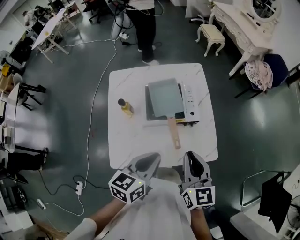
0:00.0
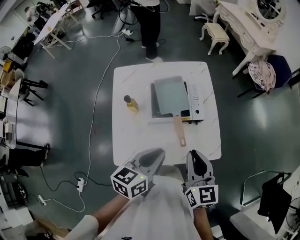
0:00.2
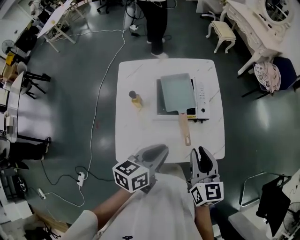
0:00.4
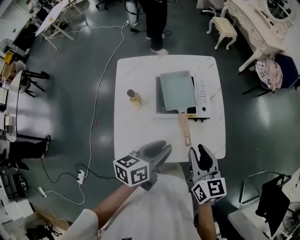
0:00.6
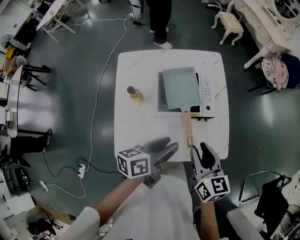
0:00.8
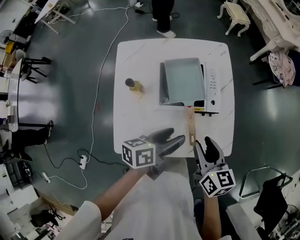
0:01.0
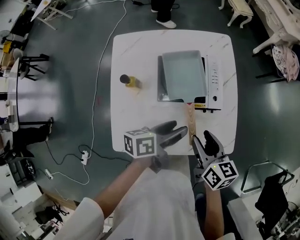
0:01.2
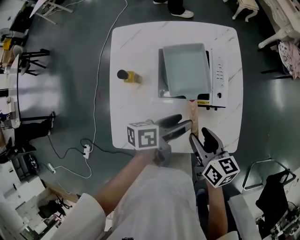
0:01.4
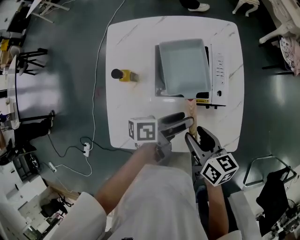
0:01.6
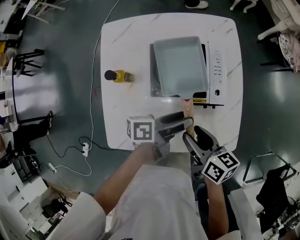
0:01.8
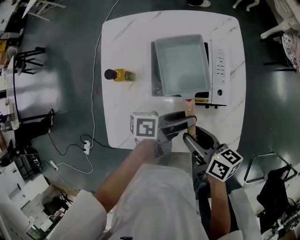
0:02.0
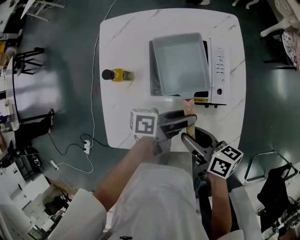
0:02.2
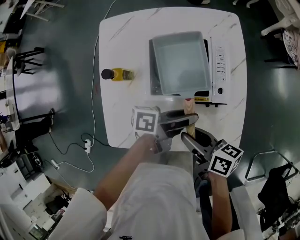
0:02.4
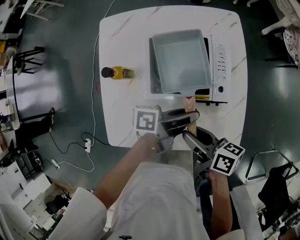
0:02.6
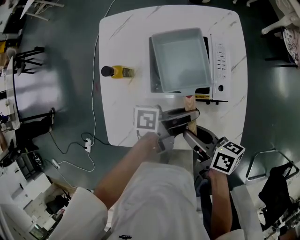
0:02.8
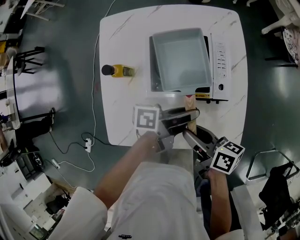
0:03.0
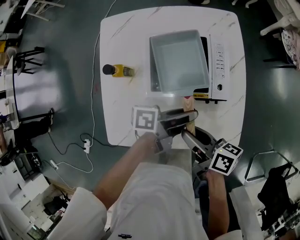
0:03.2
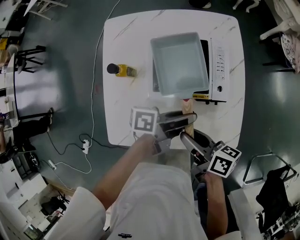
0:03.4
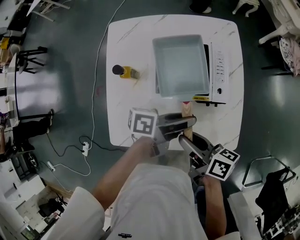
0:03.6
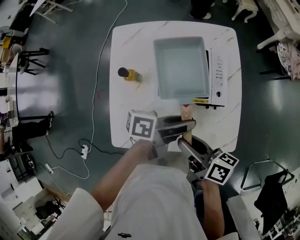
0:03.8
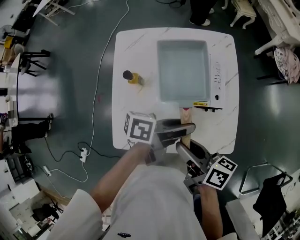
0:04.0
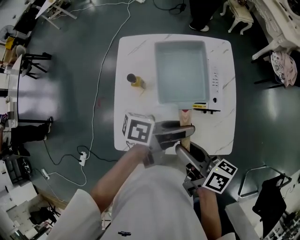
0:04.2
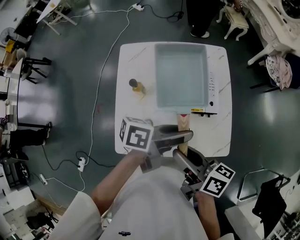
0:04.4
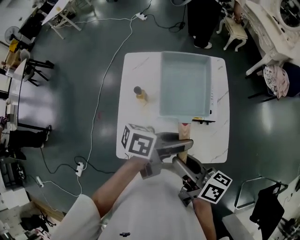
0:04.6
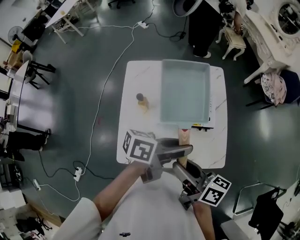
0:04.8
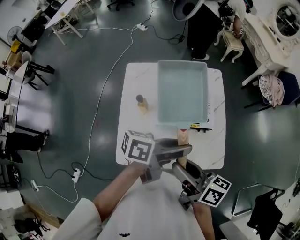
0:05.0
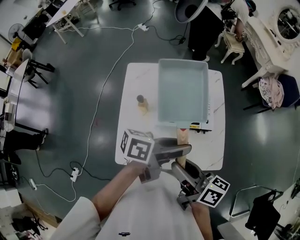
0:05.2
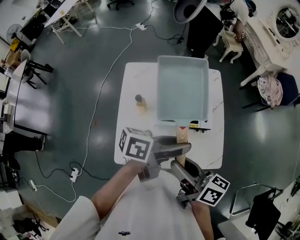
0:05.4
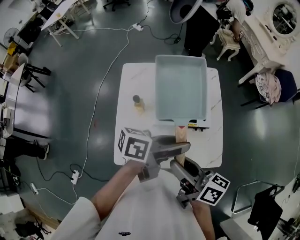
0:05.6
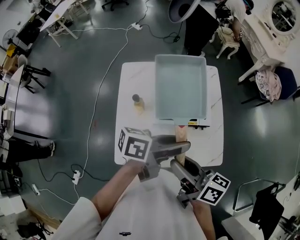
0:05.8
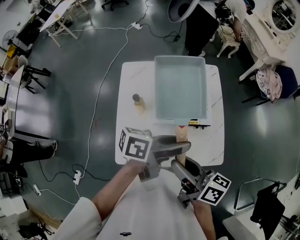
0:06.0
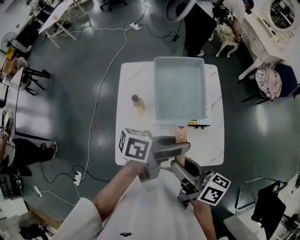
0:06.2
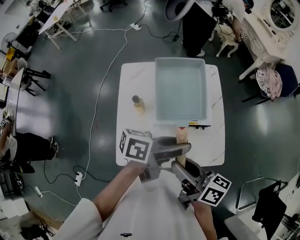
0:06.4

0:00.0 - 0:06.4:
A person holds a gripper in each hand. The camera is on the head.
0:00.0 - 0:01.6: The left gripper moves downward and forward, some 20 cm, twists some 50 degrees counterclockwise, seen from behind, and opens; the right gripper shifts about 20 cm downward, swivels approximately 40 degrees, and opens up.
0:01.6 - 0:03.2: The right gripper changes its angle by roughly 30 degrees; the left gripper closes up.
0:03.2 - 0:04.8: The two grippers go roughly 20 cm upward. The left gripper turns by roughly 20 degrees.
0:04.8 - 0:06.4: The grippers move only a little.

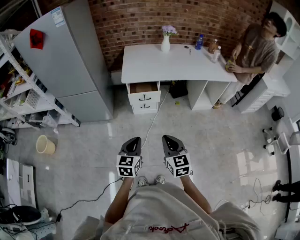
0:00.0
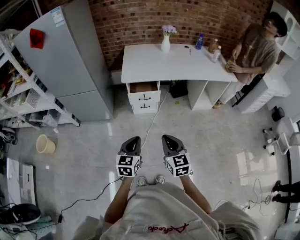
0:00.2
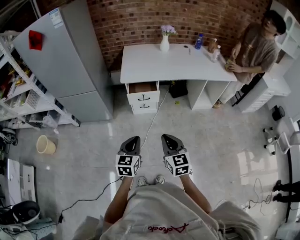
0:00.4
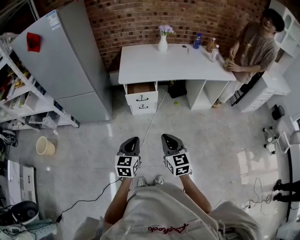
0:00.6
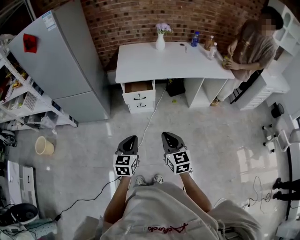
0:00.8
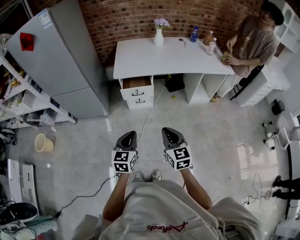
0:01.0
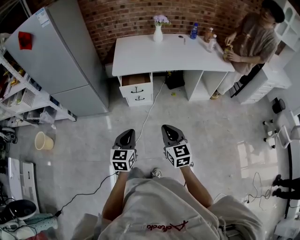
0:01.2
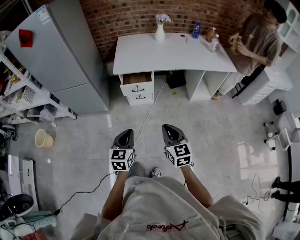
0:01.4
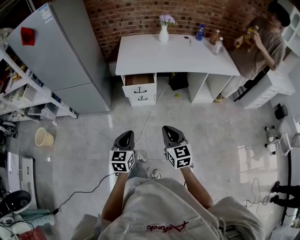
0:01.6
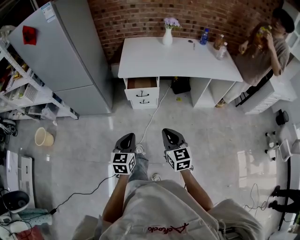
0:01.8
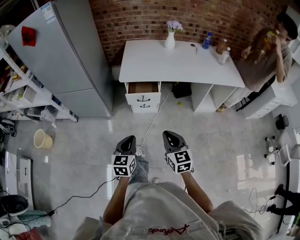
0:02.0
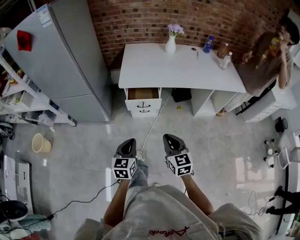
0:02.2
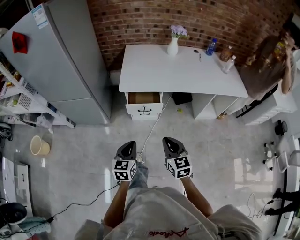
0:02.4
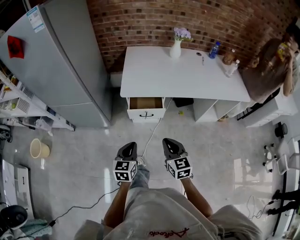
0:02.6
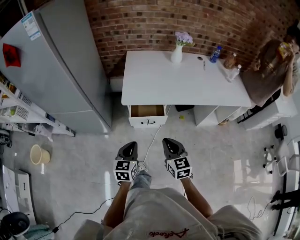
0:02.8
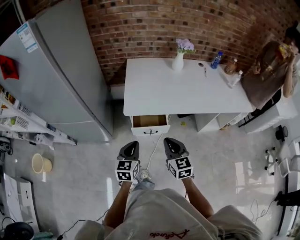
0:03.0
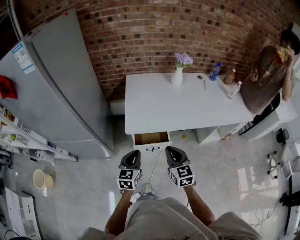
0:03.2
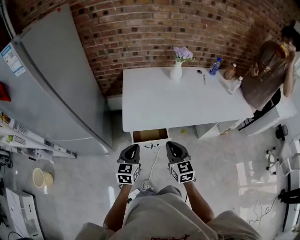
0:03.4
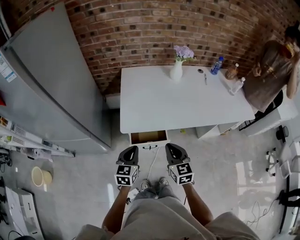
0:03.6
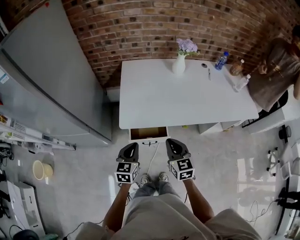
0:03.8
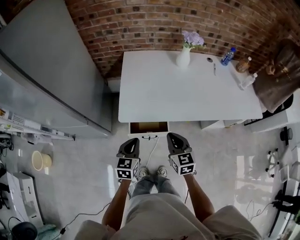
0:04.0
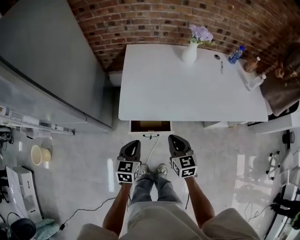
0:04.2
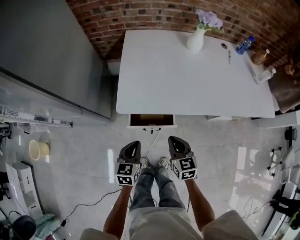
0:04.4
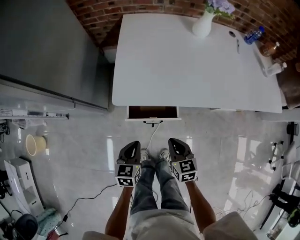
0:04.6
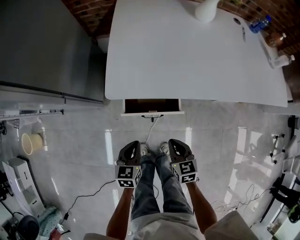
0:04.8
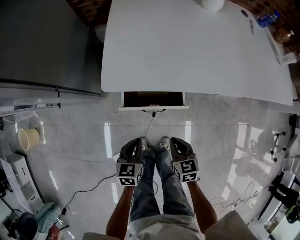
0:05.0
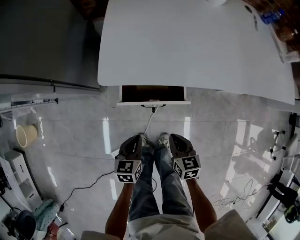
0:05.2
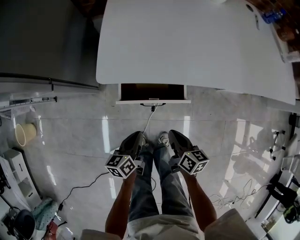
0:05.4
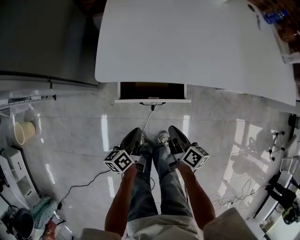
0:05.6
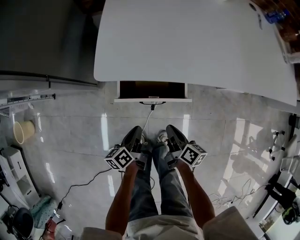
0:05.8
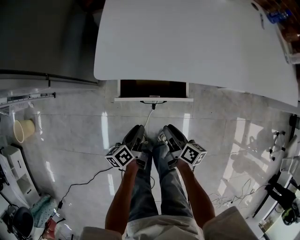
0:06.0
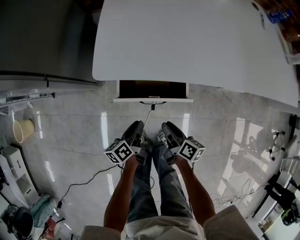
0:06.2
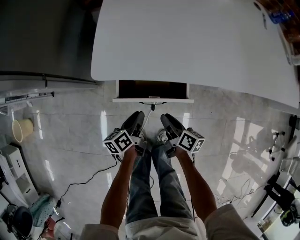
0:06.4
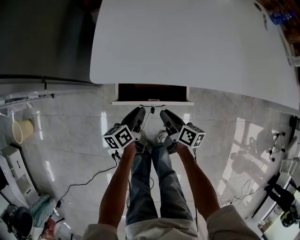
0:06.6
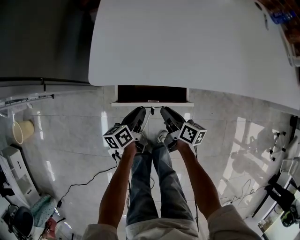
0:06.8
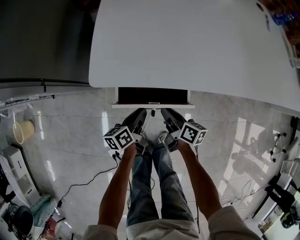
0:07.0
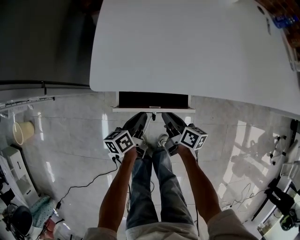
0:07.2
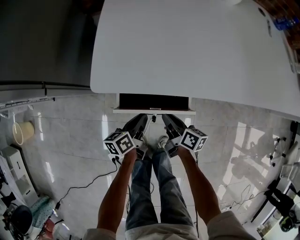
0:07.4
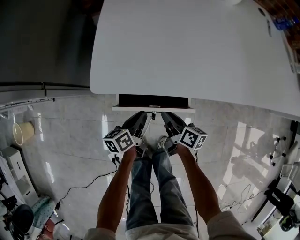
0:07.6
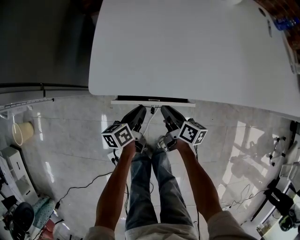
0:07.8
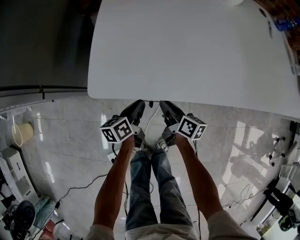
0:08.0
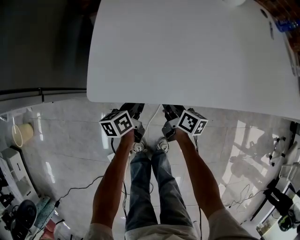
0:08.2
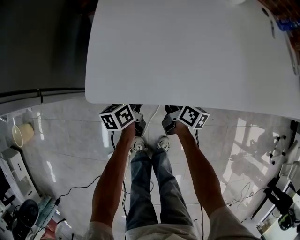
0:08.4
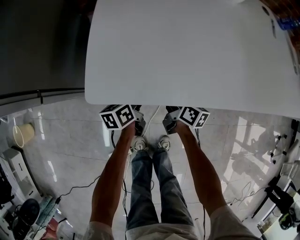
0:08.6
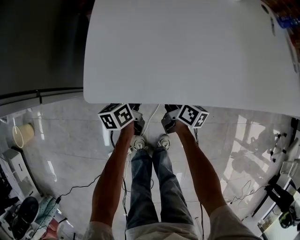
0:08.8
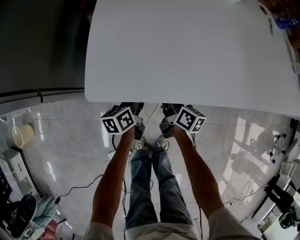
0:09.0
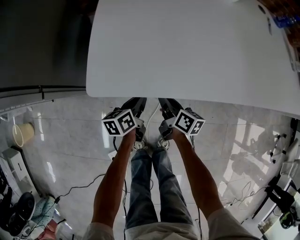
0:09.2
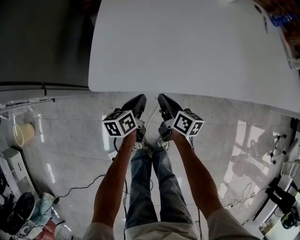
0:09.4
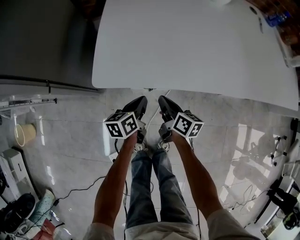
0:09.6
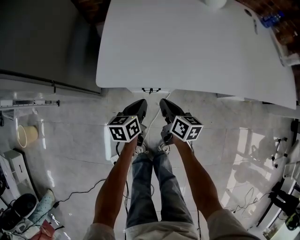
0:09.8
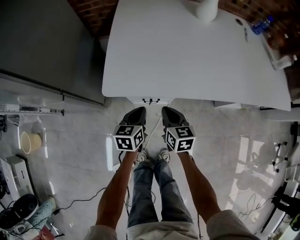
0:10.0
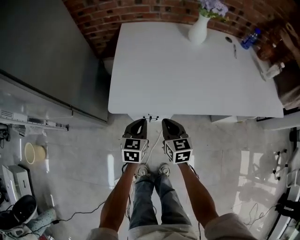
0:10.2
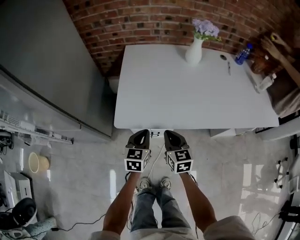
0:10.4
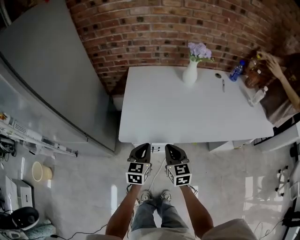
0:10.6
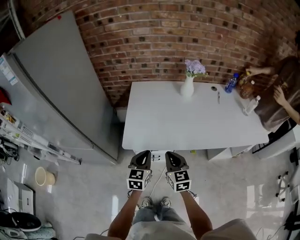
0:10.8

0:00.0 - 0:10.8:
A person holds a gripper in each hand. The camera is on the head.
0:00.0 - 0:01.6: The right gripper travels to the right by about 5 cm.
0:01.6 - 0:03.0: The two grippers go roughly 30 cm forward.
0:03.0 - 0:04.6: Both grippers move downward and forward, roughly 20 cm. The right gripper turns by some 20 degrees.
0:04.6 - 0:06.2: Both grippers move downward, roughly 20 cm. The left gripper rotates around the line of its fingers by some 50 degrees, counterclockwise from behind, and opens its fingers, while the right gripper twists roughly 50 degrees clockwise, seen from behind, and opens up.
0:06.2 - 0:07.8: Both grippers move forward, approximately 10 cm. The right gripper closes.
0:09.2 - 0:10.8: Both grippers move upward, roughly 35 cm. The right gripper rolls counterclockwise, seen from behind, by about 50 degrees; the left gripper rolls clockwise, seen from behind, by about 50 degrees.

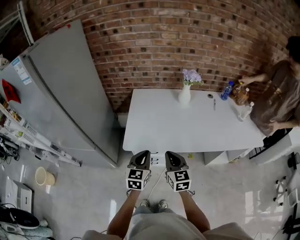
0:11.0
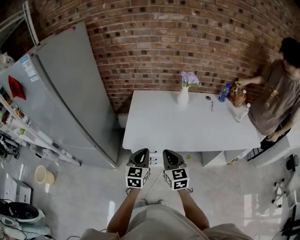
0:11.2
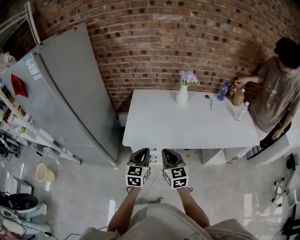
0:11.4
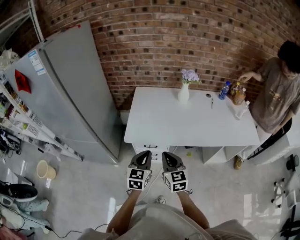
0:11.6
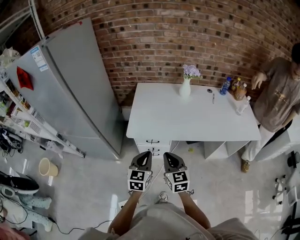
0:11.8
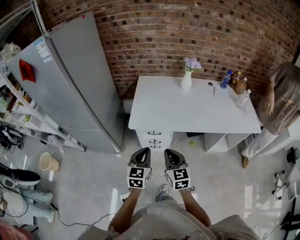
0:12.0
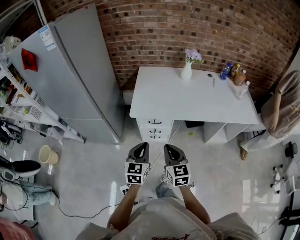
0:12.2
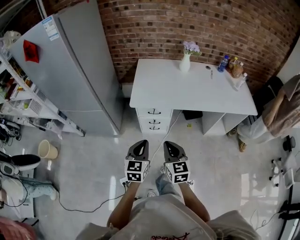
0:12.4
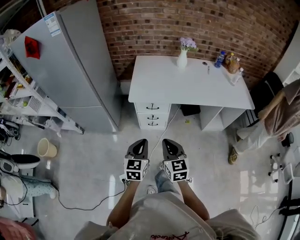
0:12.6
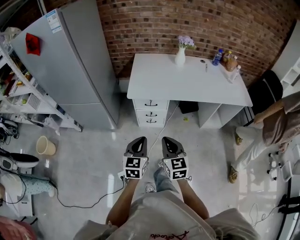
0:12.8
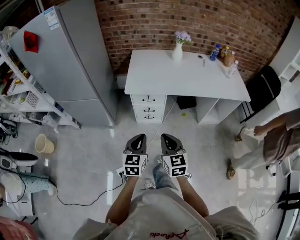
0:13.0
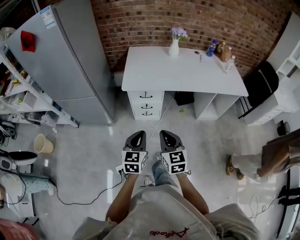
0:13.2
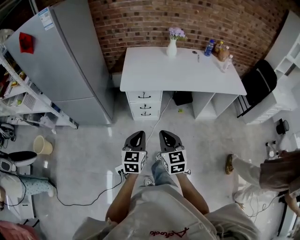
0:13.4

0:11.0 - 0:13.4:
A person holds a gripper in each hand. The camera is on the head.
0:11.0 - 0:12.2: Both grippers travel together backward, approximately 20 cm.
0:12.2 - 0:13.4: The grippers both shift backward by about 15 cm.

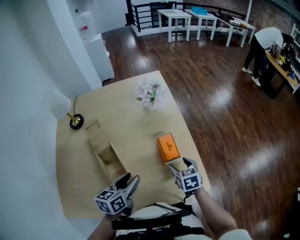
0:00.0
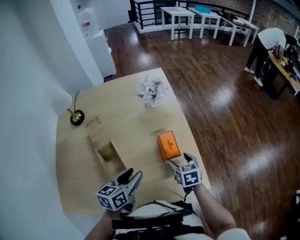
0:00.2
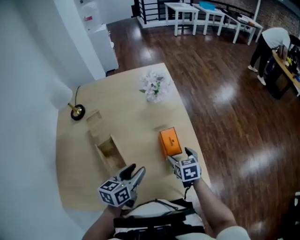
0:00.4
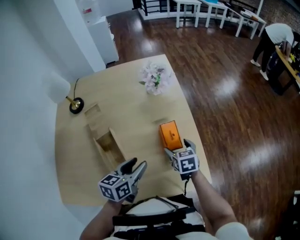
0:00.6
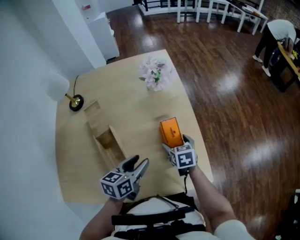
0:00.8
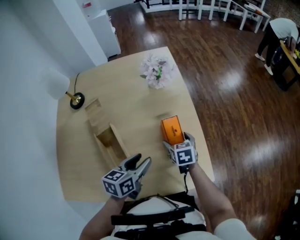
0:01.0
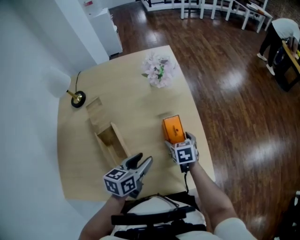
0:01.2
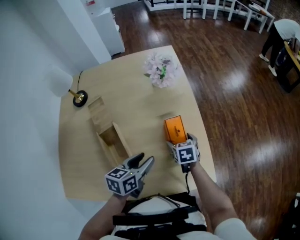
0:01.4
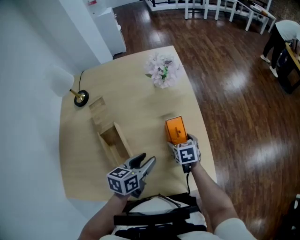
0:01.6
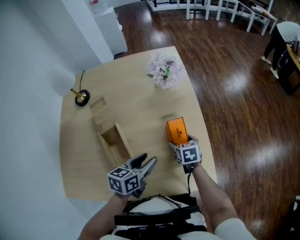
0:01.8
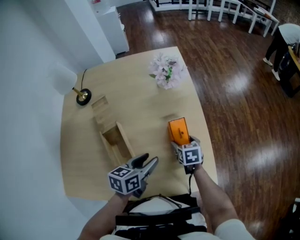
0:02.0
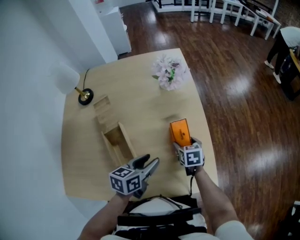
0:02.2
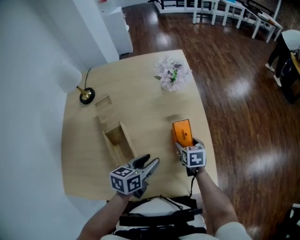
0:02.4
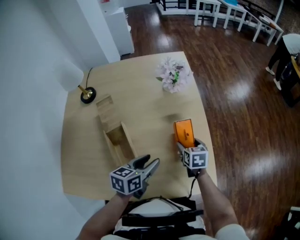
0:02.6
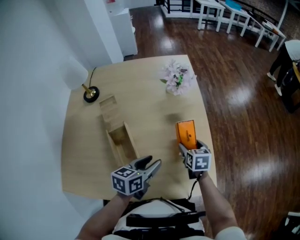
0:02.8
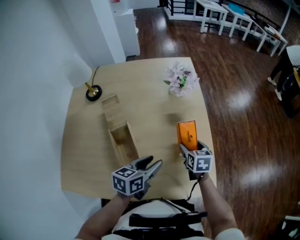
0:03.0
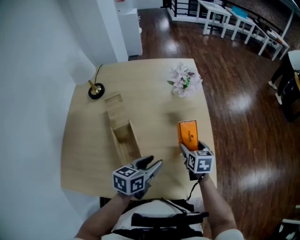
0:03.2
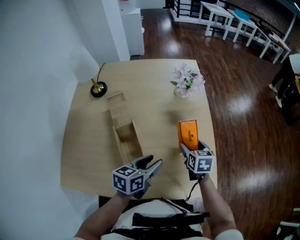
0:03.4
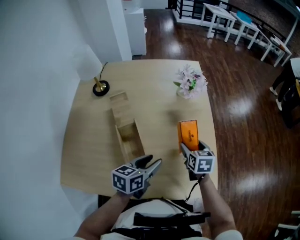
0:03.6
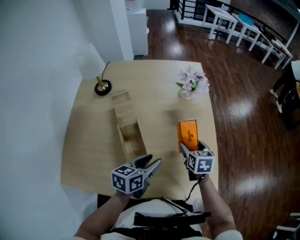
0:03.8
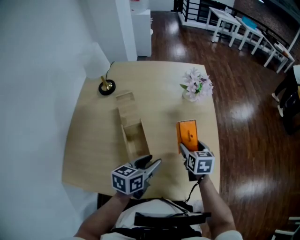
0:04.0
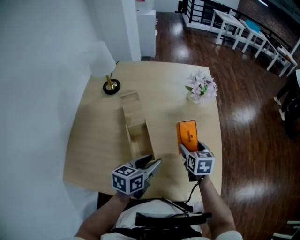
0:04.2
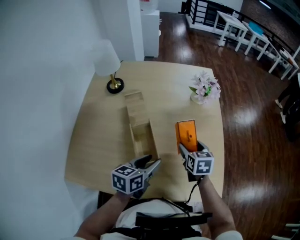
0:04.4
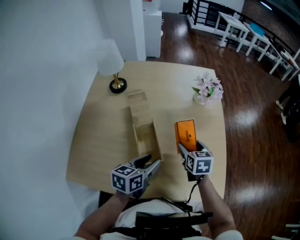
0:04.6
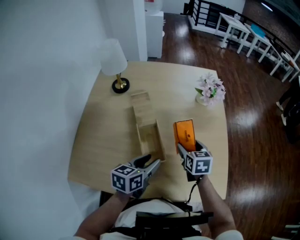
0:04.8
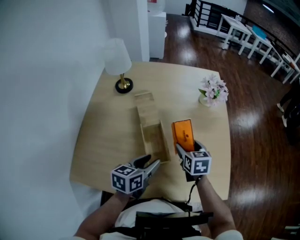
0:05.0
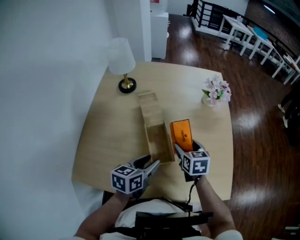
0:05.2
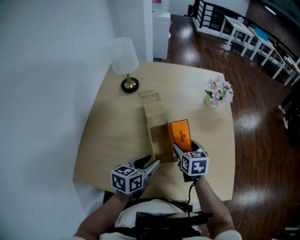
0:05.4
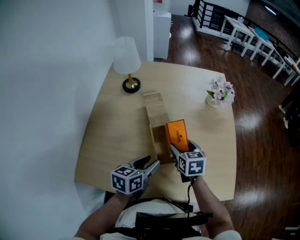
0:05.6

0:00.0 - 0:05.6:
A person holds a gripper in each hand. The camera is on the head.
0:00.0 - 0:01.4: The right gripper travels forward and downward by about 10 cm; the left gripper changes place by roughly 5 cm.
0:01.4 - 0:02.8: The grippers move only a little.
0:02.8 - 0:04.2: The right gripper shifts approximately 10 cm to the left and upward; the left gripper goes some 10 cm to the left.
0:04.2 - 0:05.6: Both grippers travel together to the left, roughly 15 cm.
